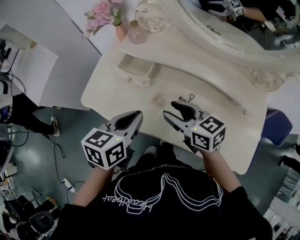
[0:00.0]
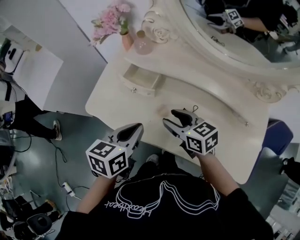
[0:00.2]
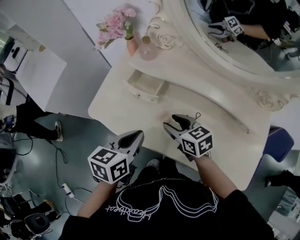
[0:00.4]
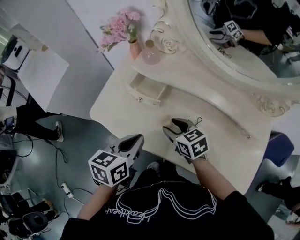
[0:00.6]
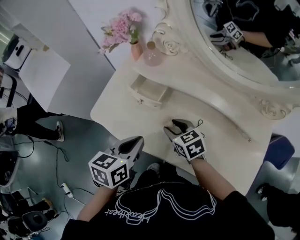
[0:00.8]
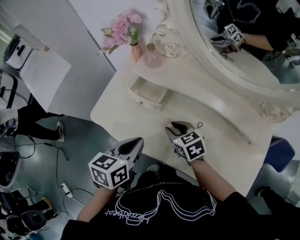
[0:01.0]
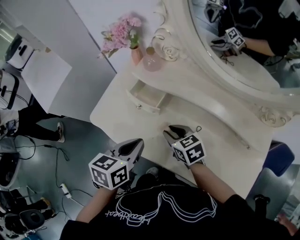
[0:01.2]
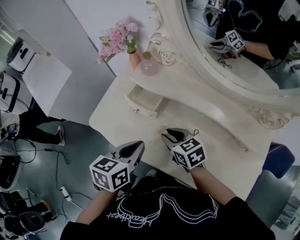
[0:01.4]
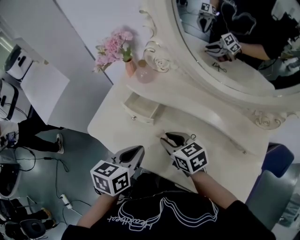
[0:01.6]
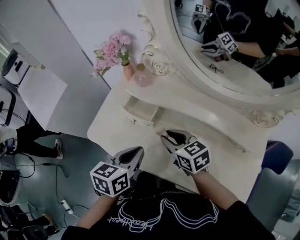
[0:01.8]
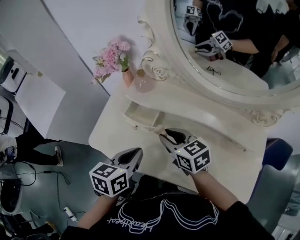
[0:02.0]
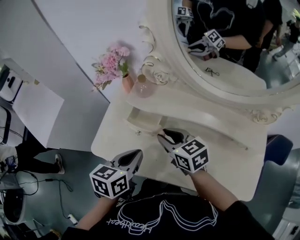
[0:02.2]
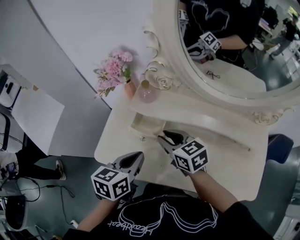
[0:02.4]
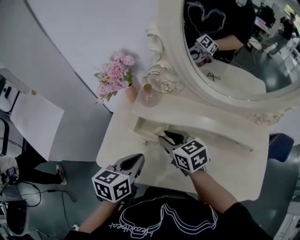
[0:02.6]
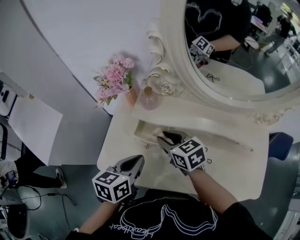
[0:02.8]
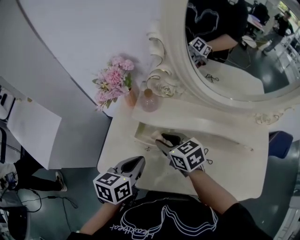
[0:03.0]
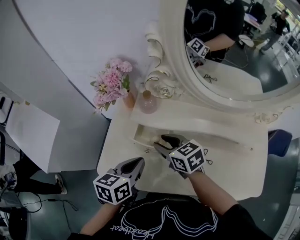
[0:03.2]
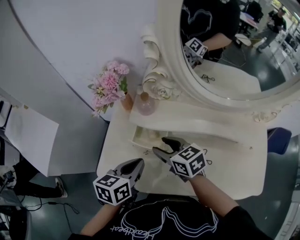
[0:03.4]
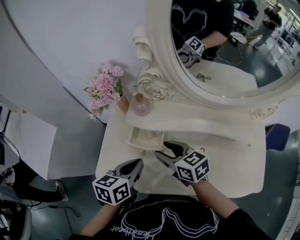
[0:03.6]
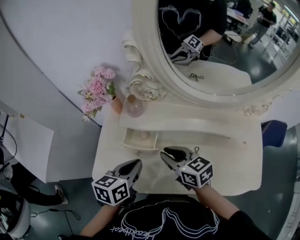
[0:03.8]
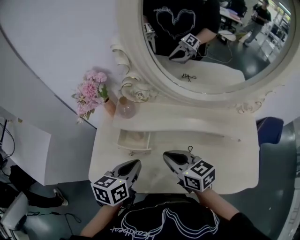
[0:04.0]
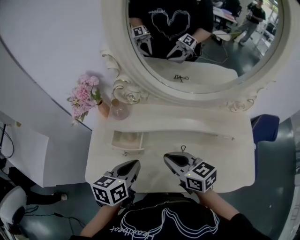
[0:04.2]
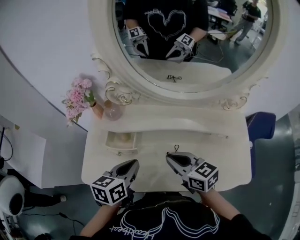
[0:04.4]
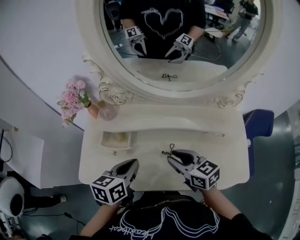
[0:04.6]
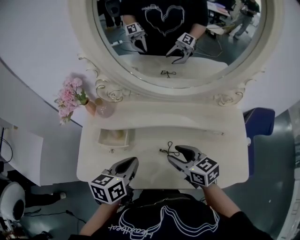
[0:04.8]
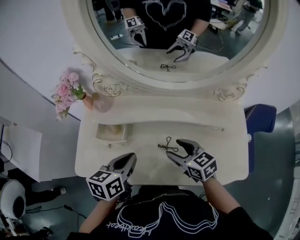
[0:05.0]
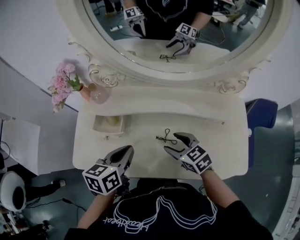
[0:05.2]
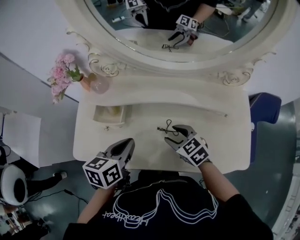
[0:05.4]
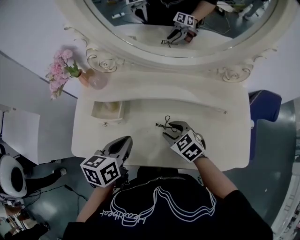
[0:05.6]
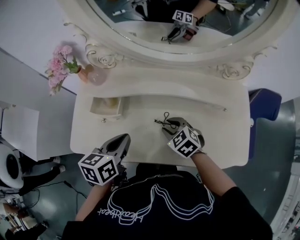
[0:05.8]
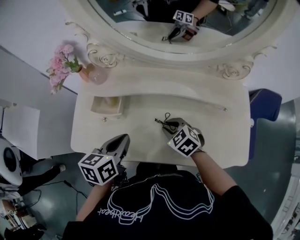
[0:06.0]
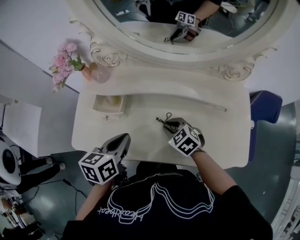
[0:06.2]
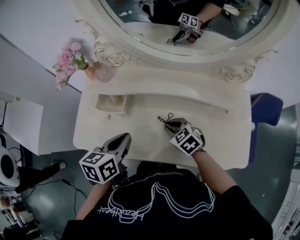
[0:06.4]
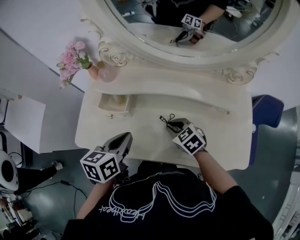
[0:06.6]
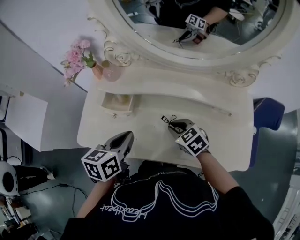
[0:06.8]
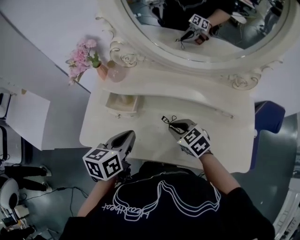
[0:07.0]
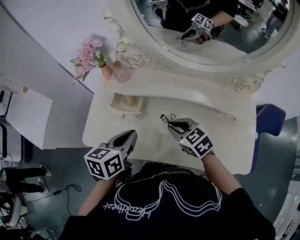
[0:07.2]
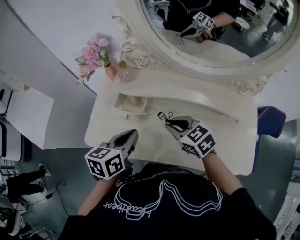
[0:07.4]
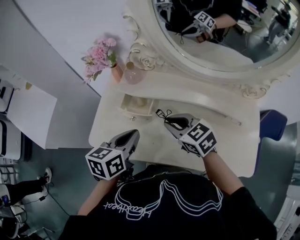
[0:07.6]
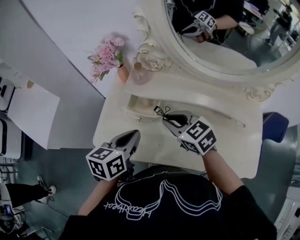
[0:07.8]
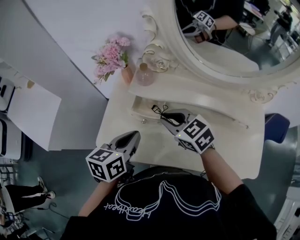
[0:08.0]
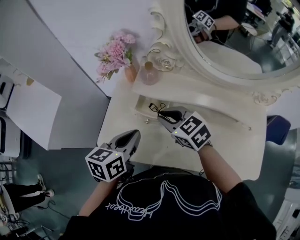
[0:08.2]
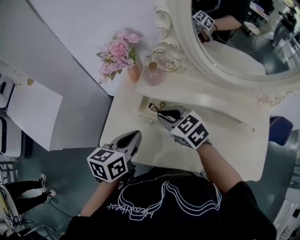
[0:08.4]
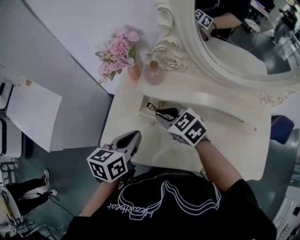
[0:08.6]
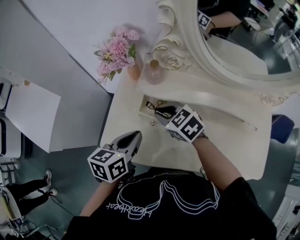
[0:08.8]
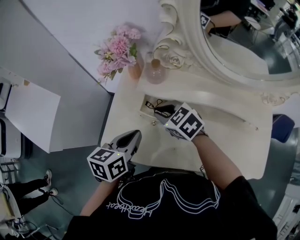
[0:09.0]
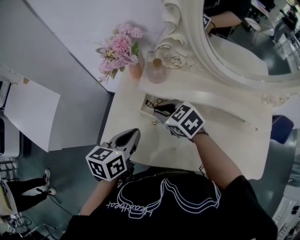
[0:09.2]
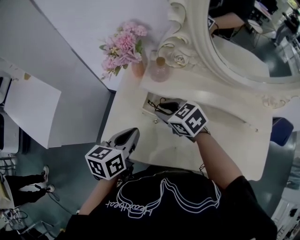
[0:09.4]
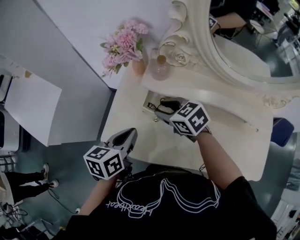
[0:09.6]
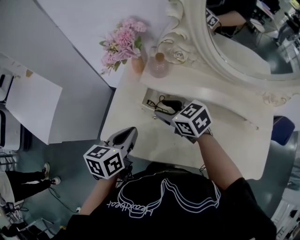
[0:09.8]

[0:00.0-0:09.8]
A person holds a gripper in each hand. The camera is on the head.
0.0 to 1.4 s: The right gripper goes roughly 5 cm downward.
1.4 to 2.8 s: The left gripper goes approximately 10 cm forward and to the left, while the right gripper is displaced forward, to the left and upward by about 15 cm.
2.8 to 4.2 s: The left gripper travels to the right by roughly 5 cm; the right gripper is displaced to the right and backward by about 15 cm, and closes its fingers.
4.2 to 5.6 s: The right gripper goes some 15 cm downward and to the right, swivels about 30 degrees, and opens up; the left gripper goes approximately 5 cm to the right.
5.6 to 7.0 s: The right gripper closes its fingers.
7.0 to 8.4 s: The right gripper heads to the left and forward, covering roughly 20 cm. Meanwhile the left gripper heads to the left and forward, covering roughly 15 cm.
8.4 to 9.8 s: The right gripper opens.

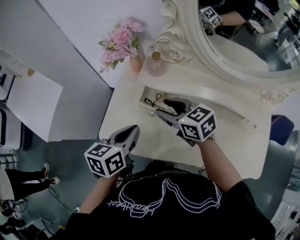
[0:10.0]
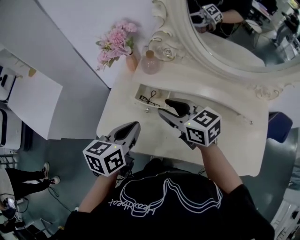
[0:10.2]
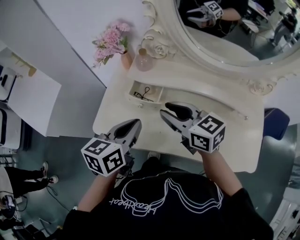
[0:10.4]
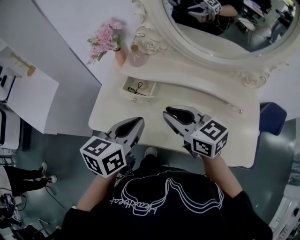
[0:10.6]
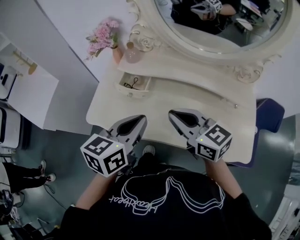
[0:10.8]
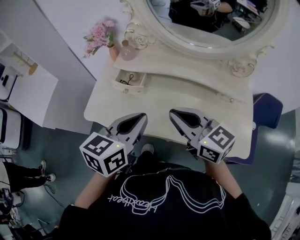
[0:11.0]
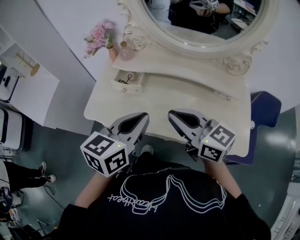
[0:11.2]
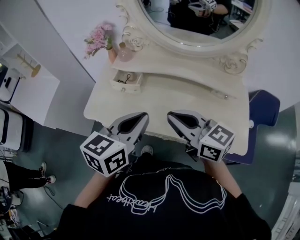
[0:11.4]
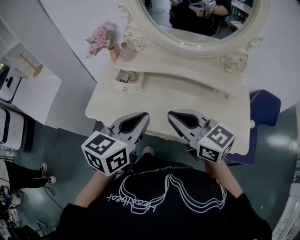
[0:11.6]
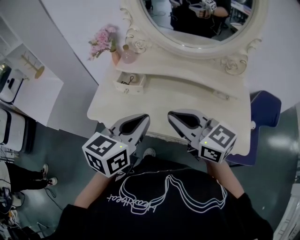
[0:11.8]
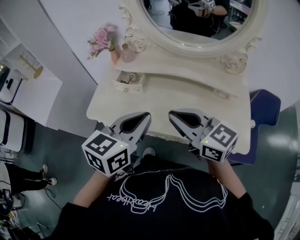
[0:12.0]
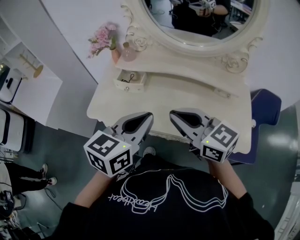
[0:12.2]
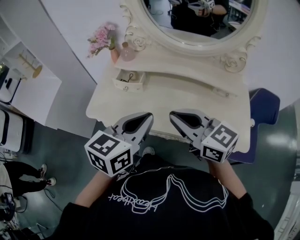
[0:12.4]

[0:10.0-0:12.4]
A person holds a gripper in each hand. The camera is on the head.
10.0 to 11.2 s: The left gripper travels to the right, backward and upward by roughly 25 cm; the right gripper shifts some 30 cm backward, to the right and upward, changes its angle by approximately 20 degrees, and closes.
11.2 to 12.4 s: The grippers move only a little.

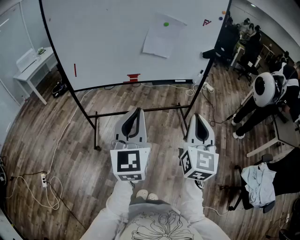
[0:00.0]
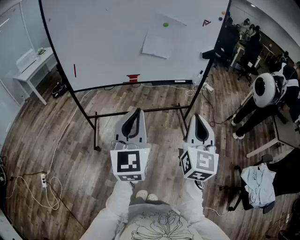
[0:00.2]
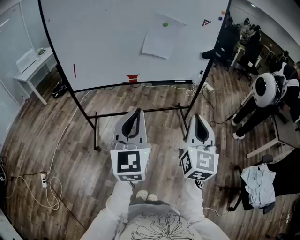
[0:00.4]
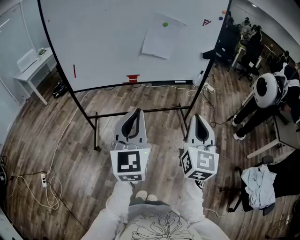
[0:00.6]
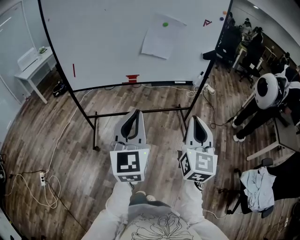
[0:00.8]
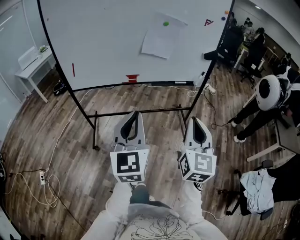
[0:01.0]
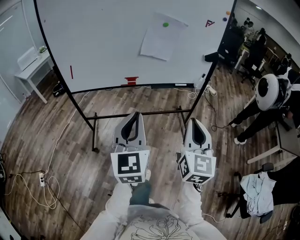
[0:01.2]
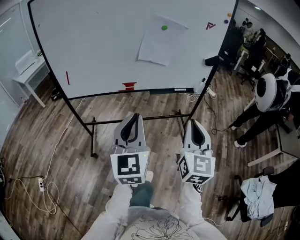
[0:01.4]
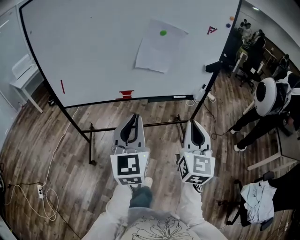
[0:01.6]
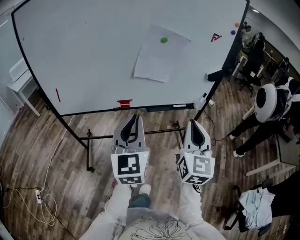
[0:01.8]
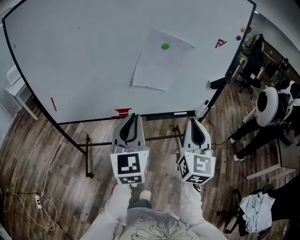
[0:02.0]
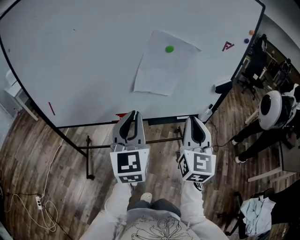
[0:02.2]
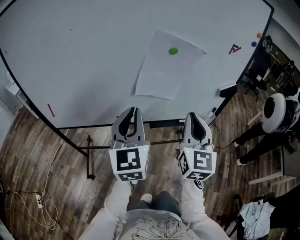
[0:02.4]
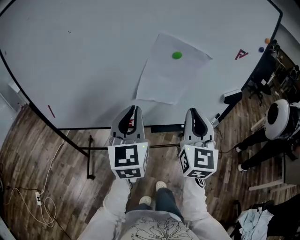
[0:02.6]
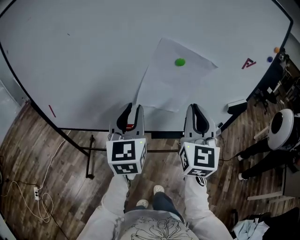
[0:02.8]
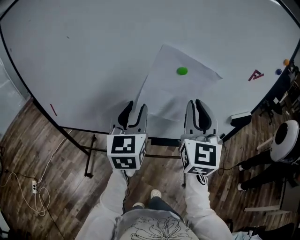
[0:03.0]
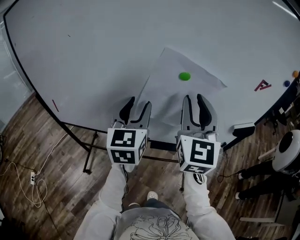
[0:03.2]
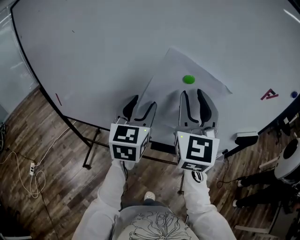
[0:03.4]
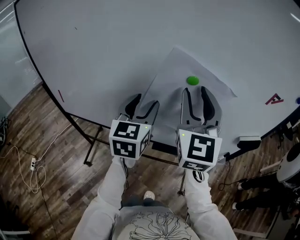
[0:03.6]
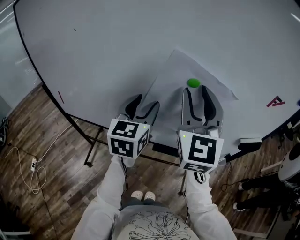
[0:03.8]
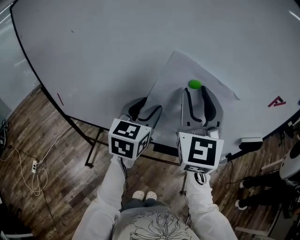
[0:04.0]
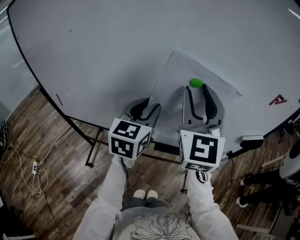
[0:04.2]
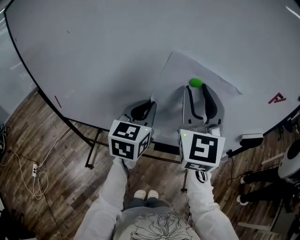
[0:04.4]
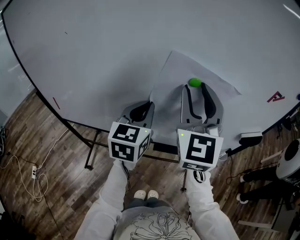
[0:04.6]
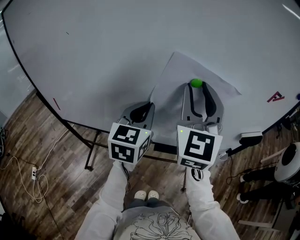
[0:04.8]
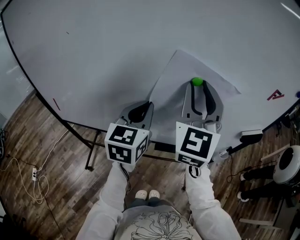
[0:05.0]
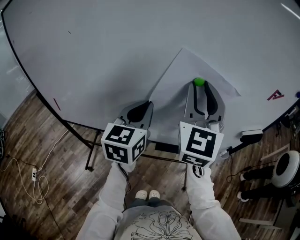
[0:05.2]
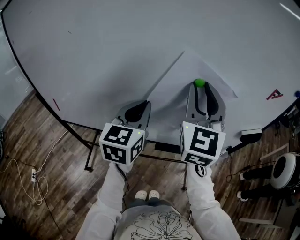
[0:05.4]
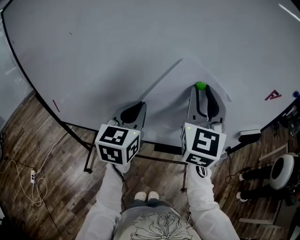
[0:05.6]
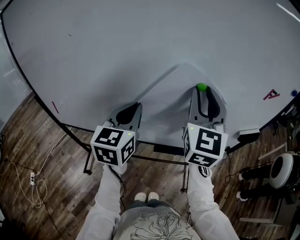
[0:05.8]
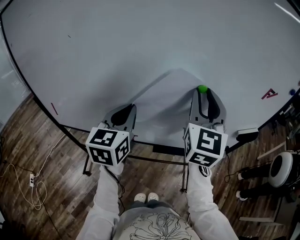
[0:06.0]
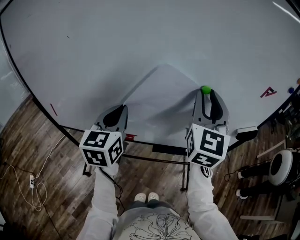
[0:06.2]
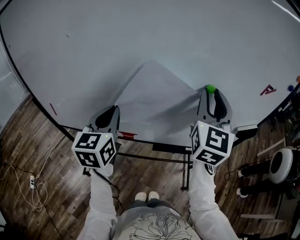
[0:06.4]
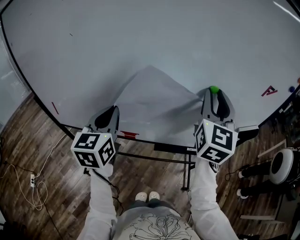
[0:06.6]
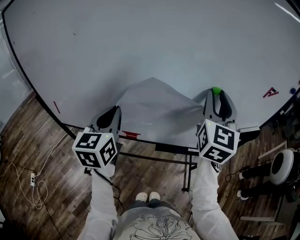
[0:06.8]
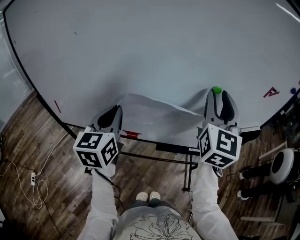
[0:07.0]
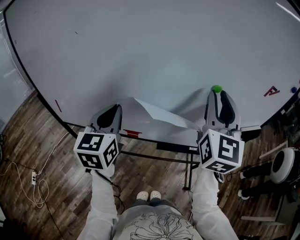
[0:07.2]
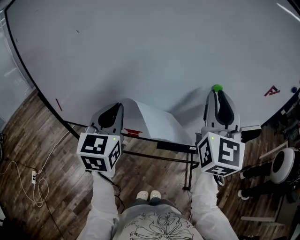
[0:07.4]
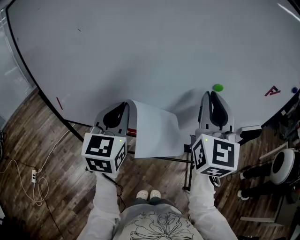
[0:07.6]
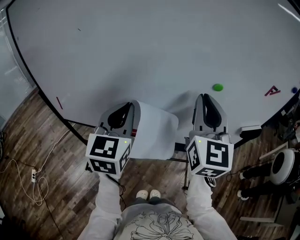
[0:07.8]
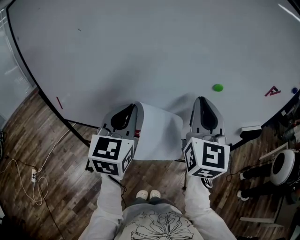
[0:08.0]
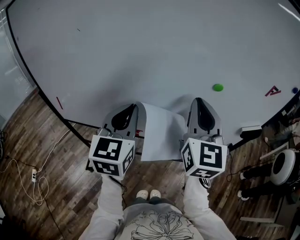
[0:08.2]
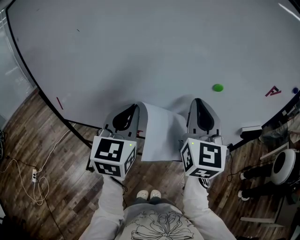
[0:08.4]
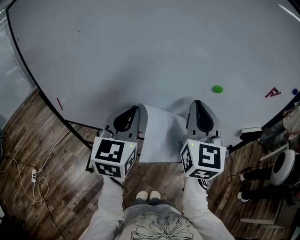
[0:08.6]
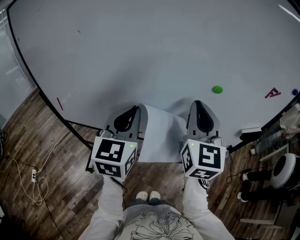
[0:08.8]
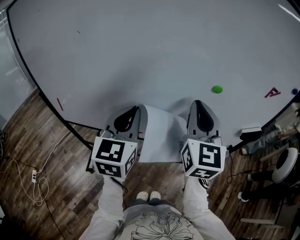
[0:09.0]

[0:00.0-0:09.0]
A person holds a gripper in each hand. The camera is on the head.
0.0 to 1.6 s: The grippers both shift forward by approximately 20 cm.
1.6 to 3.0 s: The two grippers go about 40 cm forward. The left gripper opens its fingers.
3.0 to 4.4 s: The two grippers go approximately 10 cm forward. The left gripper closes its fingers, while the right gripper opens up.
4.4 to 6.0 s: The left gripper travels to the left by roughly 5 cm.
6.0 to 7.6 s: The left gripper moves some 5 cm. Meanwhile the right gripper moves approximately 5 cm.
7.6 to 9.0 s: The grippers move only a little.

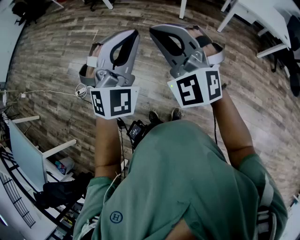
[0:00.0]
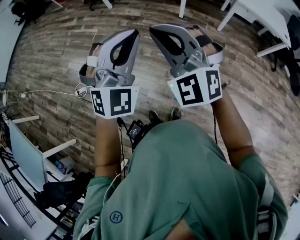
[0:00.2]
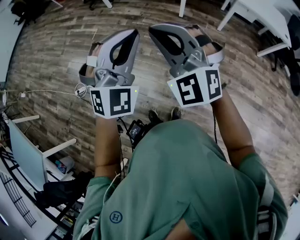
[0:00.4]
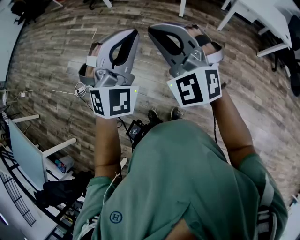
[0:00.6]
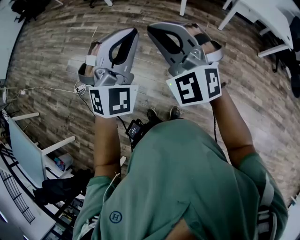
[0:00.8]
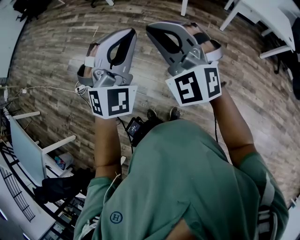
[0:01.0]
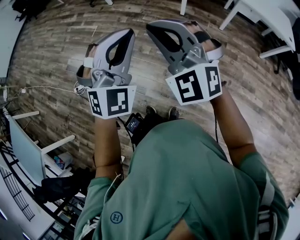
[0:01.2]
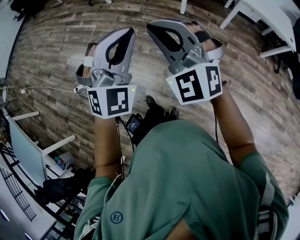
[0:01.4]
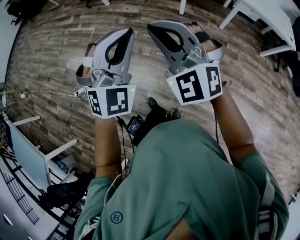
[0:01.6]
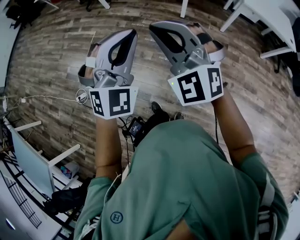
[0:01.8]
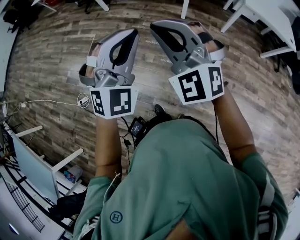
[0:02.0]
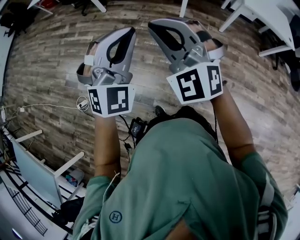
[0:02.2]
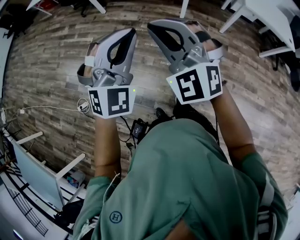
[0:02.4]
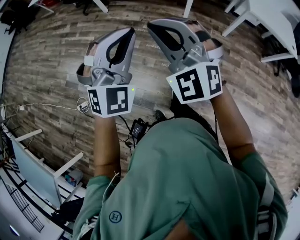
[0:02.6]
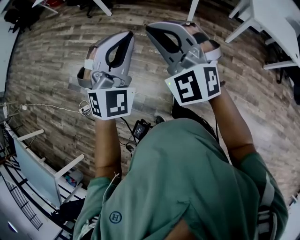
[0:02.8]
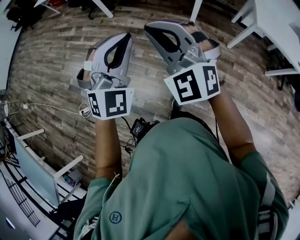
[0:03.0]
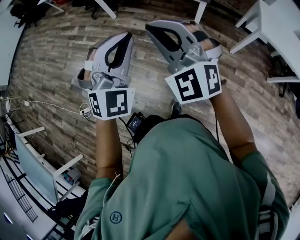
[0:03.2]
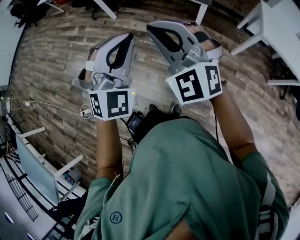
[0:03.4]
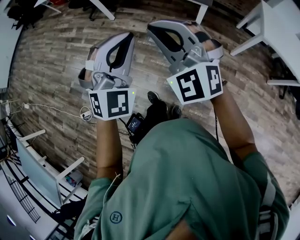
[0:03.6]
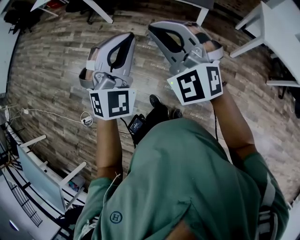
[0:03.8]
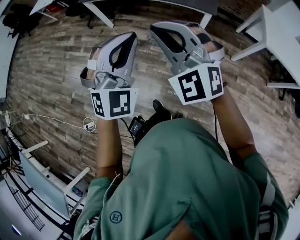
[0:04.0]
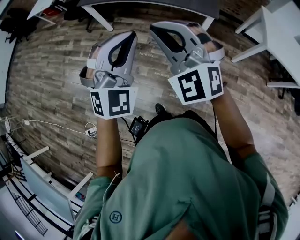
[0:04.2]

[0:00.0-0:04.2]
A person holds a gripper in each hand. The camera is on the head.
0.0 to 1.4 s: The left gripper ends up approximately 5 cm from where it was, while the right gripper moves approximately 5 cm.
1.4 to 2.8 s: The two grippers go approximately 20 cm forward.
2.8 to 4.2 s: The grippers both shift forward by some 25 cm.
